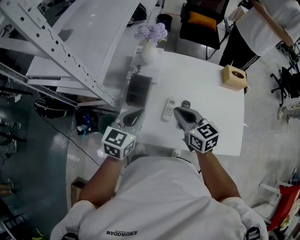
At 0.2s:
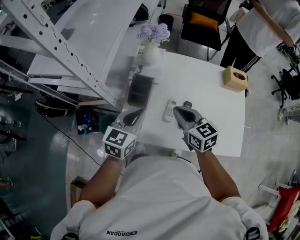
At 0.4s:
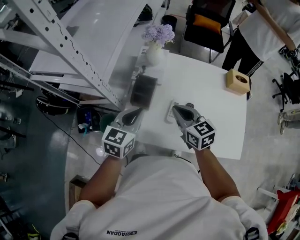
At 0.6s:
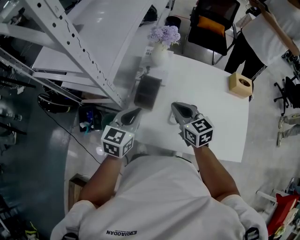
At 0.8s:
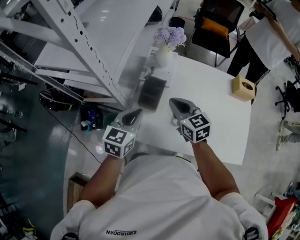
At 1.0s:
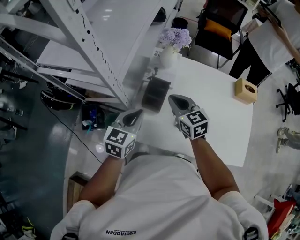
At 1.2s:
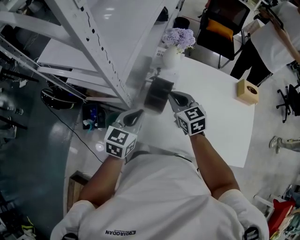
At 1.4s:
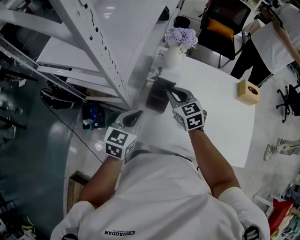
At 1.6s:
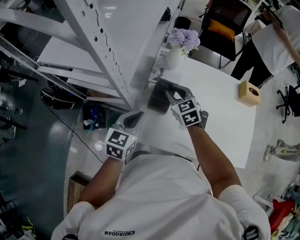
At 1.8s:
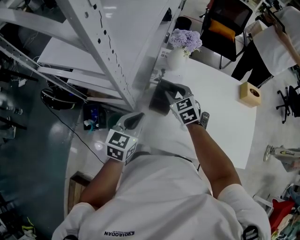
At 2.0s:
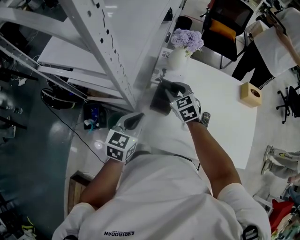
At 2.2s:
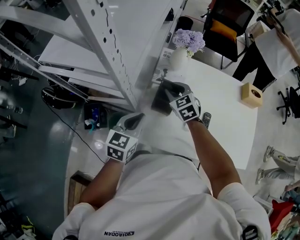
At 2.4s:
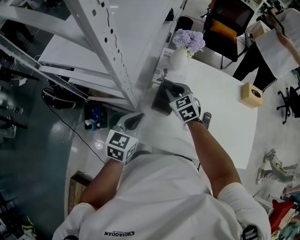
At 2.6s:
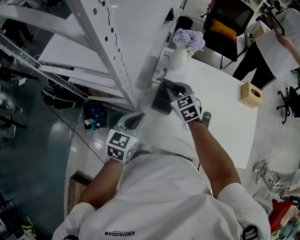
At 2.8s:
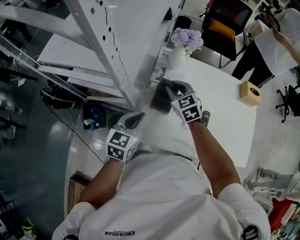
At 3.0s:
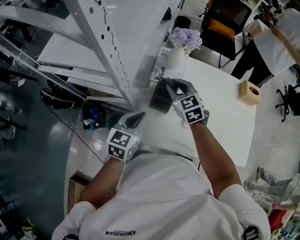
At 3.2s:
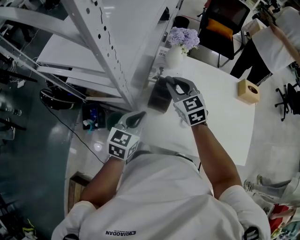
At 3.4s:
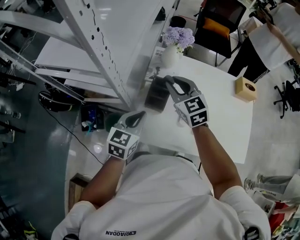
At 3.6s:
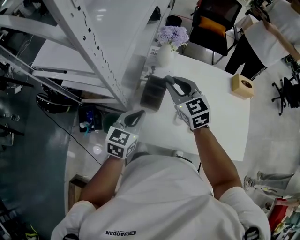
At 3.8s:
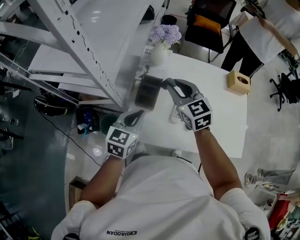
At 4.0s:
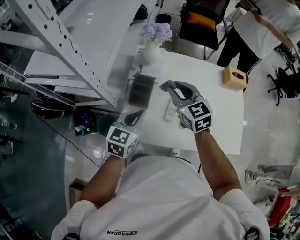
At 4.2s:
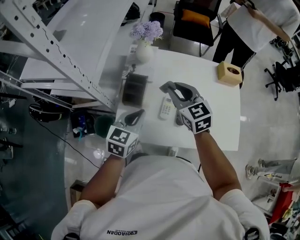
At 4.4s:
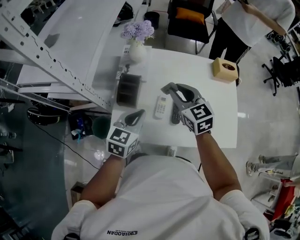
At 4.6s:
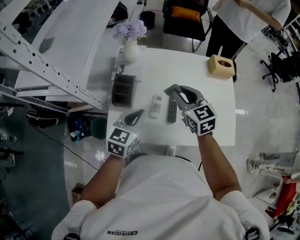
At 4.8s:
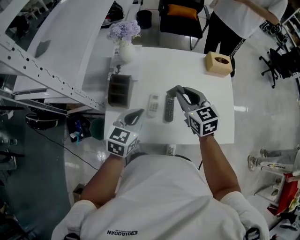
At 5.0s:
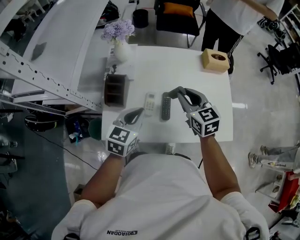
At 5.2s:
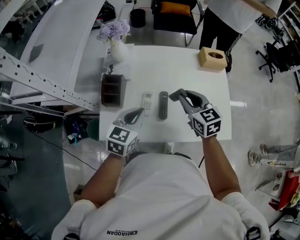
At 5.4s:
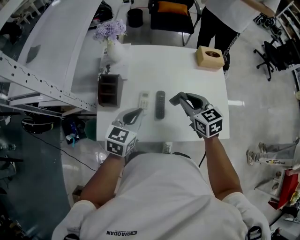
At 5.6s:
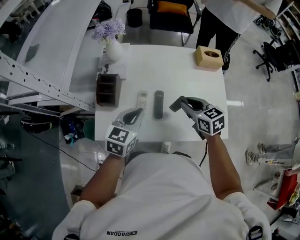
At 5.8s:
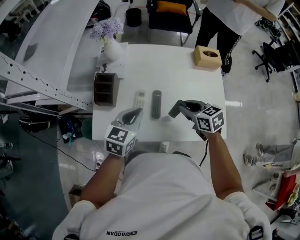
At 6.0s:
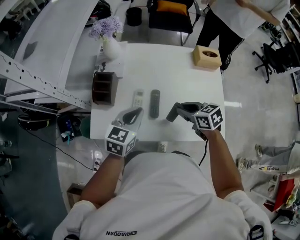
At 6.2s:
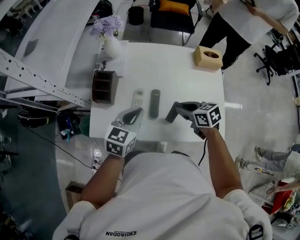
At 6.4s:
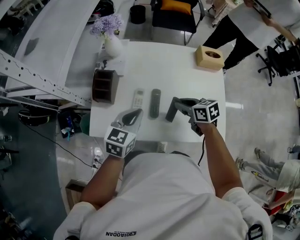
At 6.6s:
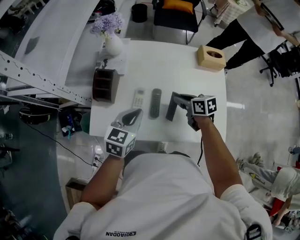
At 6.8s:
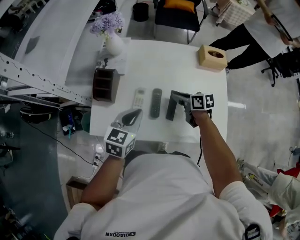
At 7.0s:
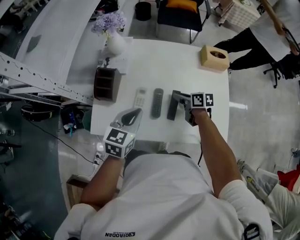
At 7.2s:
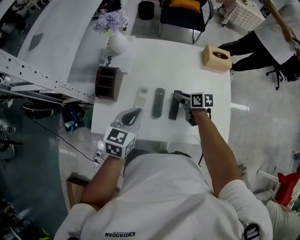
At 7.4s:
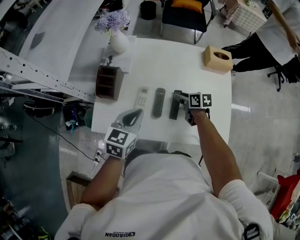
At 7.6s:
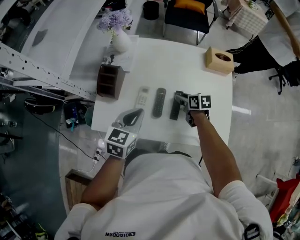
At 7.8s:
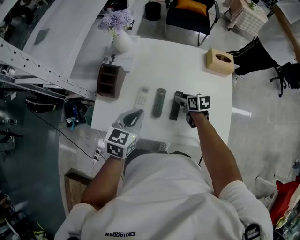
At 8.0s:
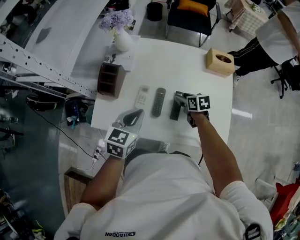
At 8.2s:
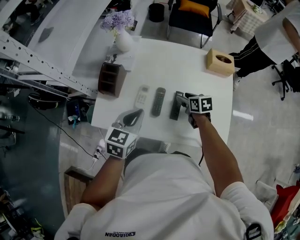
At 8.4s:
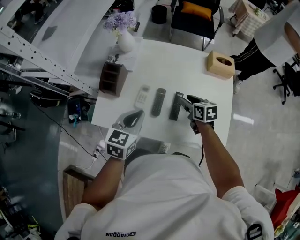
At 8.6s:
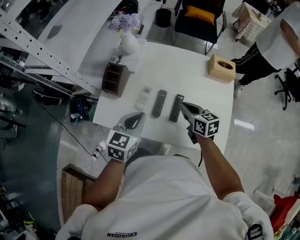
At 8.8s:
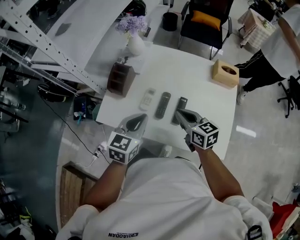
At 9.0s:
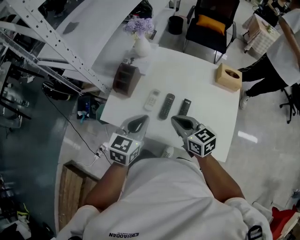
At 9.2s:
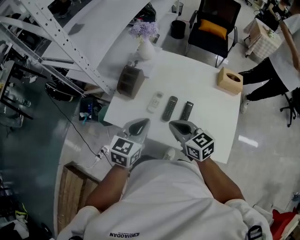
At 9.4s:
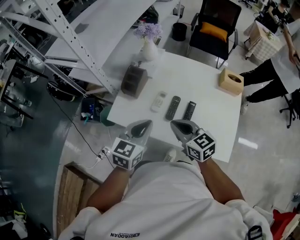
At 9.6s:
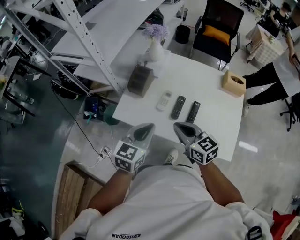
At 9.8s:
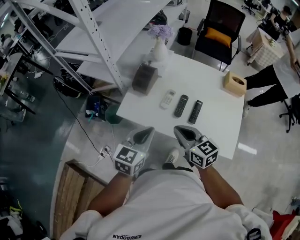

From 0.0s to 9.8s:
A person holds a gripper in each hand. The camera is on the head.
From 0.0s to 1.4s: The right gripper moves forward and to the left, about 15 cm, while the left gripper shifts roughly 10 cm to the left.
From 2.8s to 4.2s: The left gripper moves to the right, about 15 cm, while the right gripper moves to the right, backward and upward, about 20 cm.
From 4.2s to 5.6s: The left gripper heads to the right, covering some 10 cm, while the right gripper goes roughly 20 cm to the right and downward, and rotates approximately 20 degrees.
From 5.6s to 7.0s: The right gripper is displaced downward and forward by roughly 15 cm, and rotates some 30 degrees.
From 7.0s to 8.4s: There are only small adjustments of the grippers.
From 8.4s to 9.8s: The left gripper shifts approximately 15 cm backward, to the left and upward; the right gripper travels to the left, backward and upward by about 30 cm, rotates approximately 30 degrees, and closes.

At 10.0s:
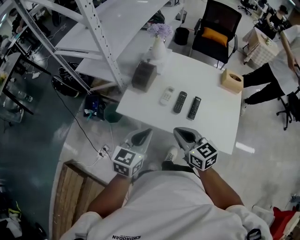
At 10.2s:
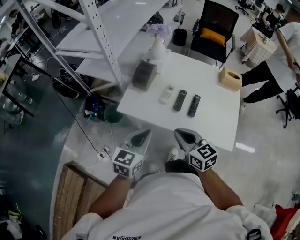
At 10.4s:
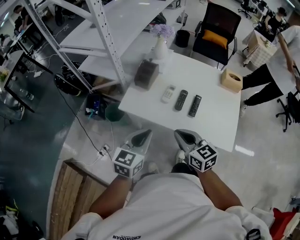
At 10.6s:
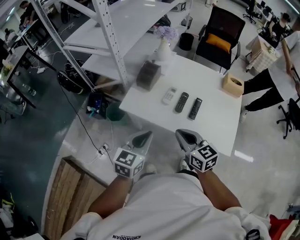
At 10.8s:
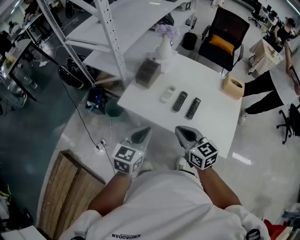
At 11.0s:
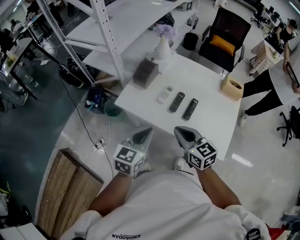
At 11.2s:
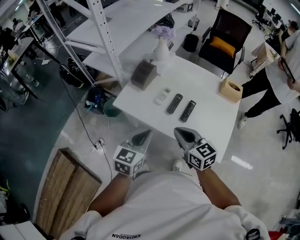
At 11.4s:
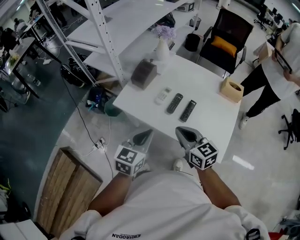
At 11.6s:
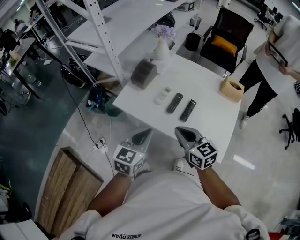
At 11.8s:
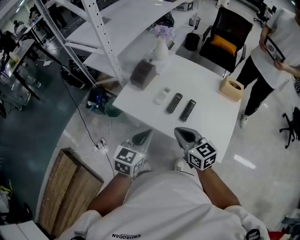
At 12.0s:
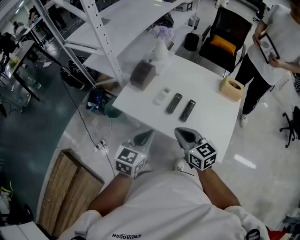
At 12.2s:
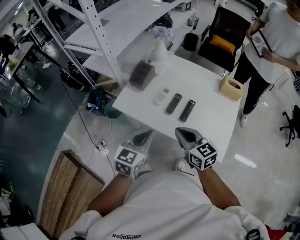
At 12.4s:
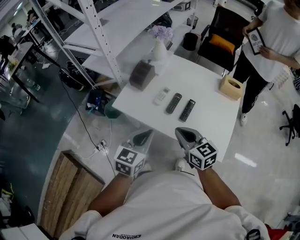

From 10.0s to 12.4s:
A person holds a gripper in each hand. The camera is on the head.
From 10.0s to 11.2s: Both grippers travel together to the right, about 5 cm.
From 11.2s to 12.4s: The grippers make only small movements.

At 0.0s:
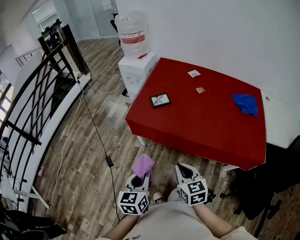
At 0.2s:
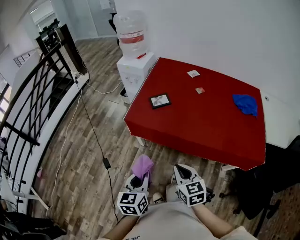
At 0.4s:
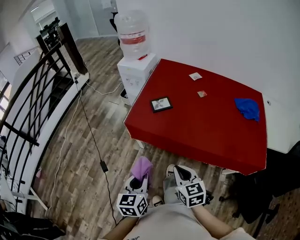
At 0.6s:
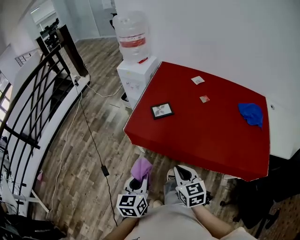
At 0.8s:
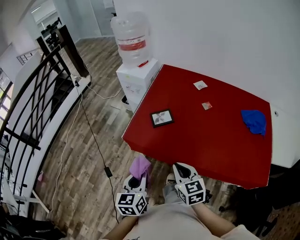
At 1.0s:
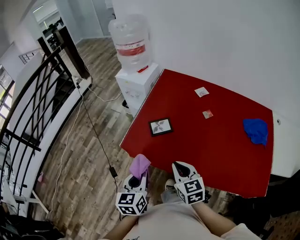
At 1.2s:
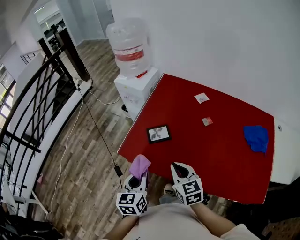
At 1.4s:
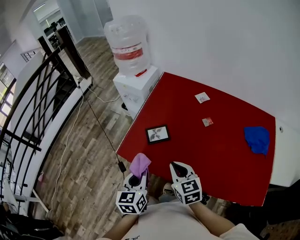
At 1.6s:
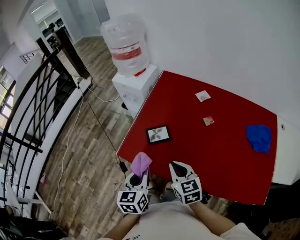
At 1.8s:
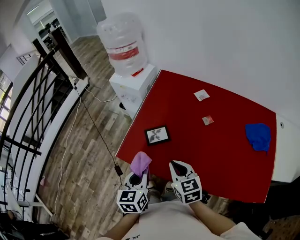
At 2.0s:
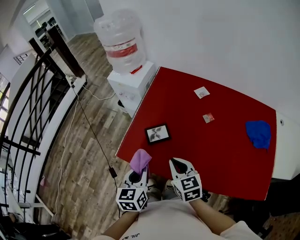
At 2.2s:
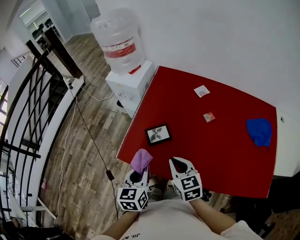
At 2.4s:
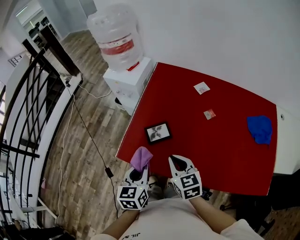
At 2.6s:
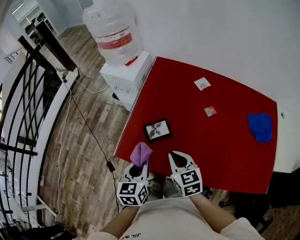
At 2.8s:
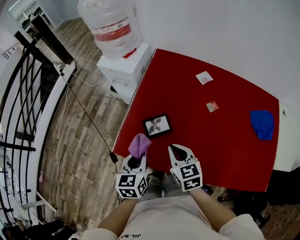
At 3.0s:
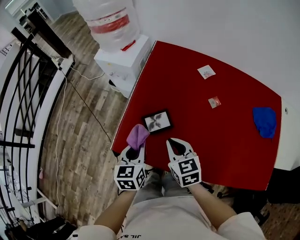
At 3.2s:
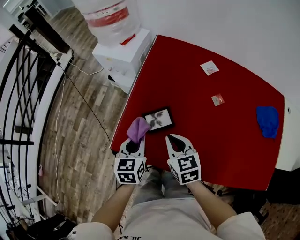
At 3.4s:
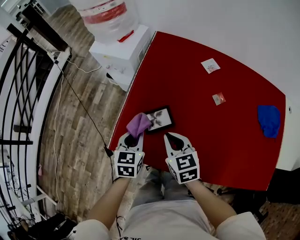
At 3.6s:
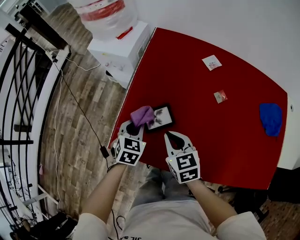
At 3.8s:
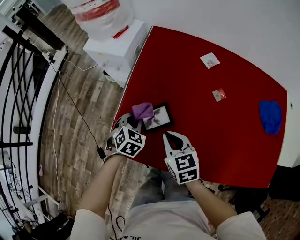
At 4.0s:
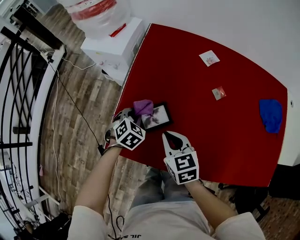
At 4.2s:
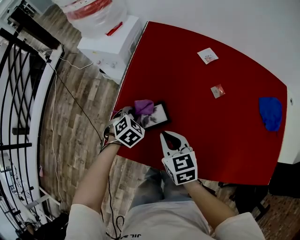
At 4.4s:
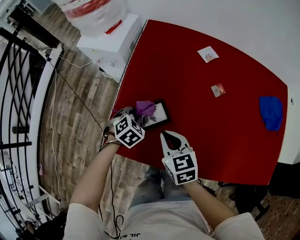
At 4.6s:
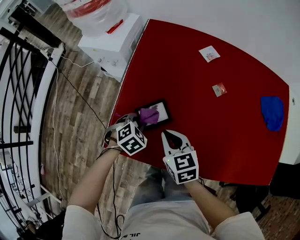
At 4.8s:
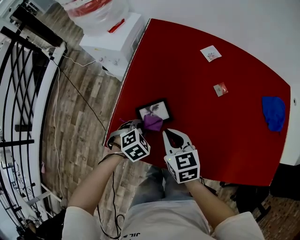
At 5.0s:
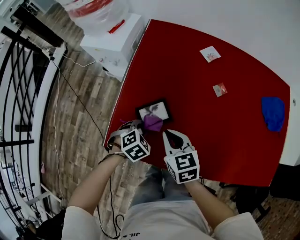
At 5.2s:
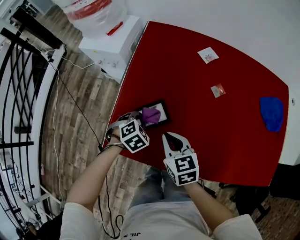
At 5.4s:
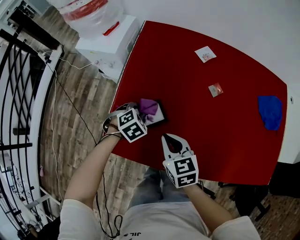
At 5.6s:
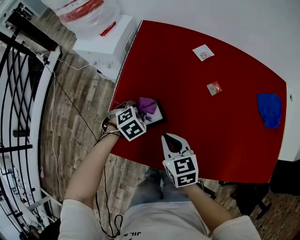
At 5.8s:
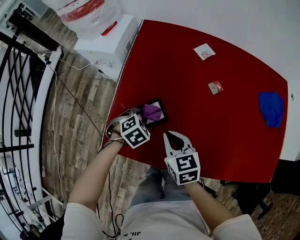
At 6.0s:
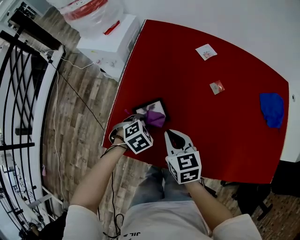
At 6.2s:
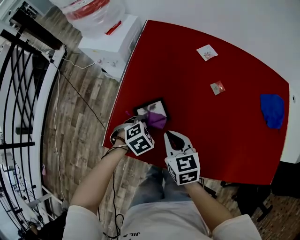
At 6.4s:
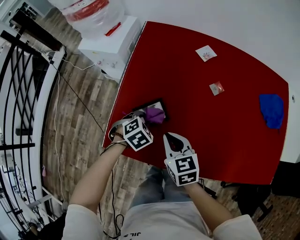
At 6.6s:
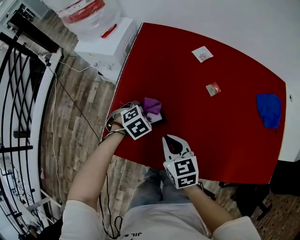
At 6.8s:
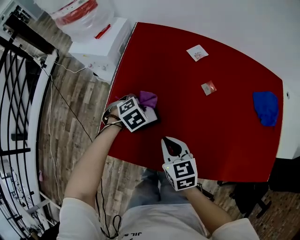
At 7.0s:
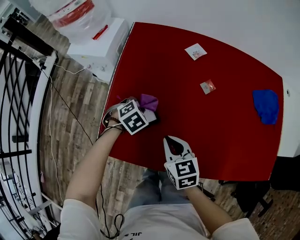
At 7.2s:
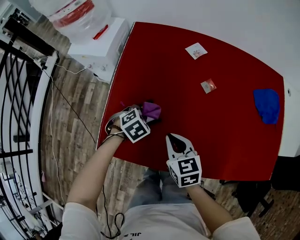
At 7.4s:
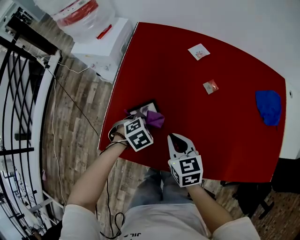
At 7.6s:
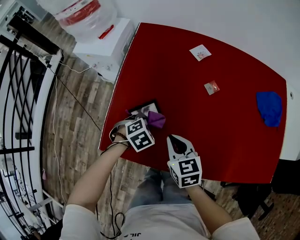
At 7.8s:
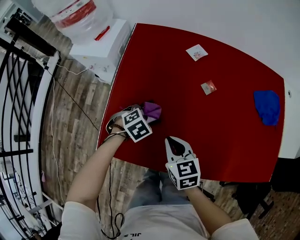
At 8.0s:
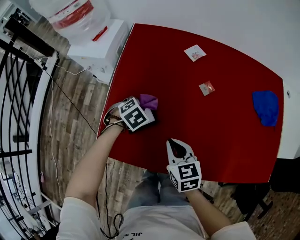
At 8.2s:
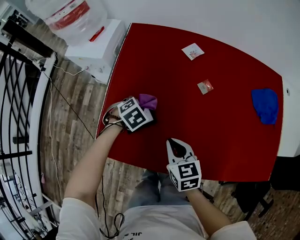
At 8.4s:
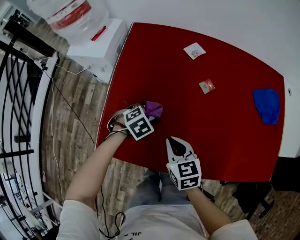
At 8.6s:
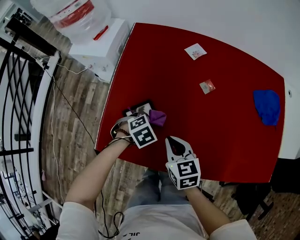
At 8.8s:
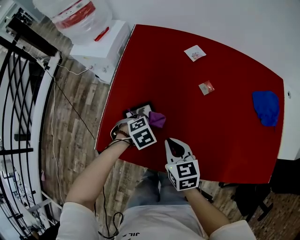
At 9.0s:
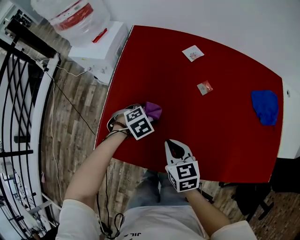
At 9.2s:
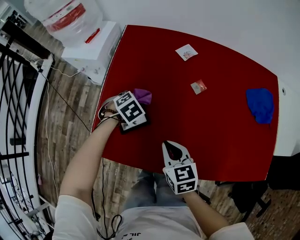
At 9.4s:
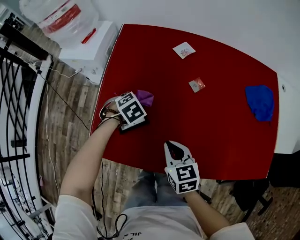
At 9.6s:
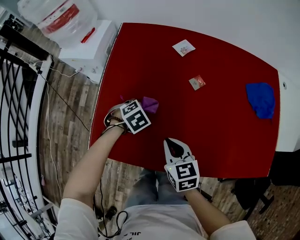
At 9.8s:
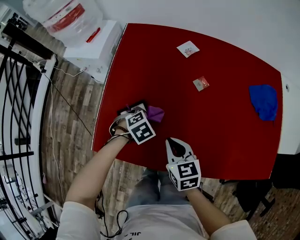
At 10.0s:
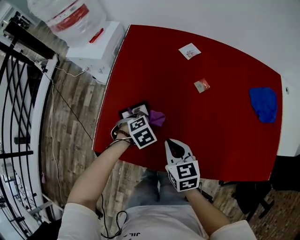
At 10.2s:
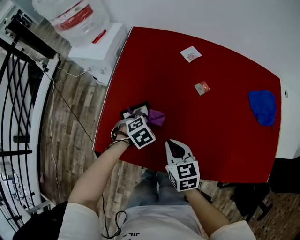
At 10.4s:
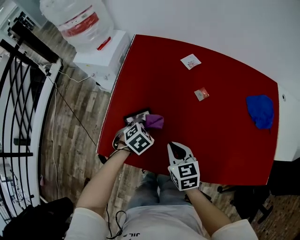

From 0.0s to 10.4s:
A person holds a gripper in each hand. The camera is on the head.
From 0.0s to 1.4s: The grippers both shift forward by approximately 30 cm.
From 1.4s to 3.0s: Both grippers move forward and downward, roughly 15 cm.
From 3.0s to 4.4s: The left gripper is displaced downward and forward by roughly 20 cm, and twists some 50 degrees clockwise, seen from behind. Meanwhile the right gripper moves downward, about 5 cm.
From 4.4s to 6.0s: The left gripper goes forward and backward, roughly 10 cm each way, reversing 2 times.
From 6.0s to 7.4s: The left gripper goes forward and returns, some 10 cm each way.

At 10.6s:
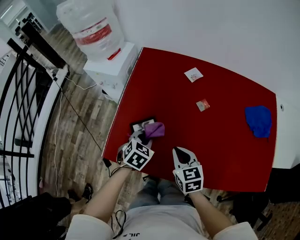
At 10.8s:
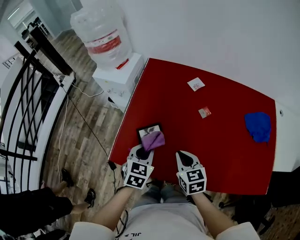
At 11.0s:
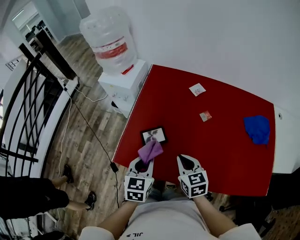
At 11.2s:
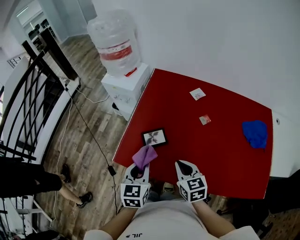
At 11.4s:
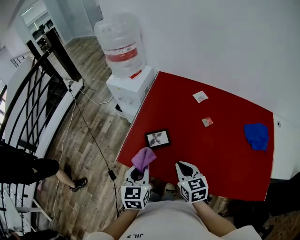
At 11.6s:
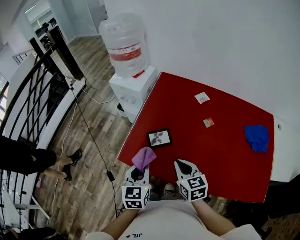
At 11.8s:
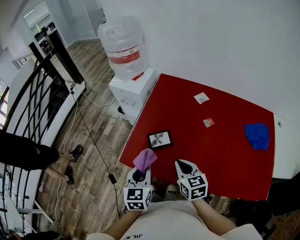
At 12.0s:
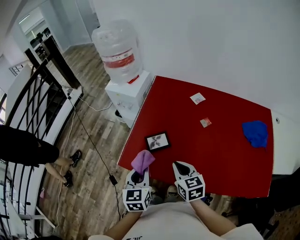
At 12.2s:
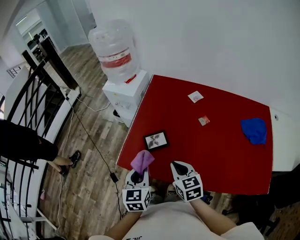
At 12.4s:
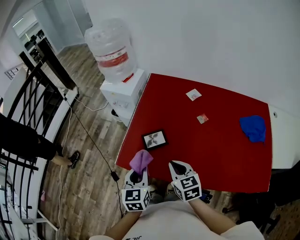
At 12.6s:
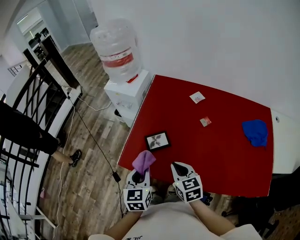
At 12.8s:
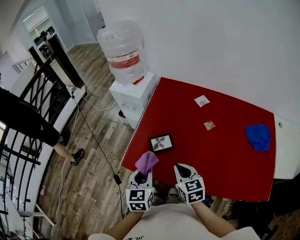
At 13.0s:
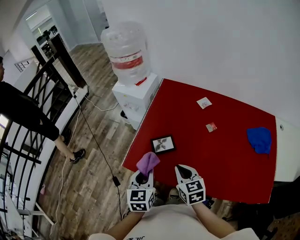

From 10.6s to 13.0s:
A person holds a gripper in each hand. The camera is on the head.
From 10.6s to 11.8s: The left gripper shifts approximately 25 cm upward, backward and to the left, and changes its angle by roughly 50 degrees. Meanwhile the right gripper is displaced upward, to the left and backward by about 10 cm.
From 11.8s to 13.0s: The grippers stay close to where they were, moving slightly.
